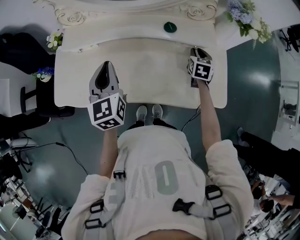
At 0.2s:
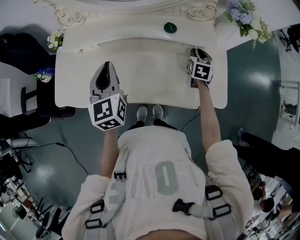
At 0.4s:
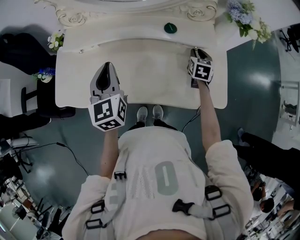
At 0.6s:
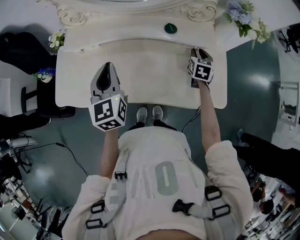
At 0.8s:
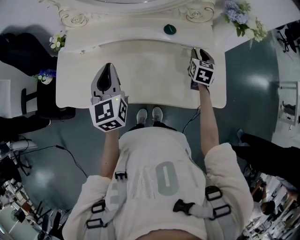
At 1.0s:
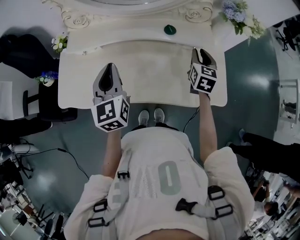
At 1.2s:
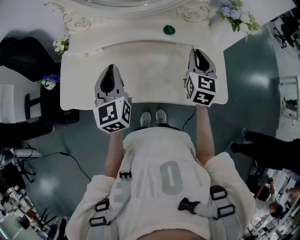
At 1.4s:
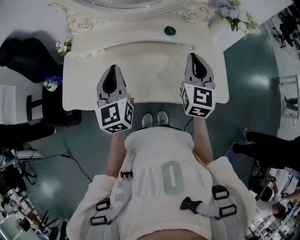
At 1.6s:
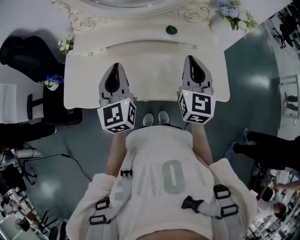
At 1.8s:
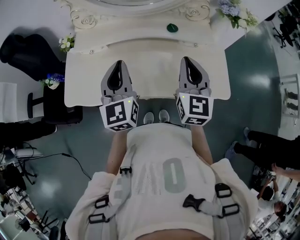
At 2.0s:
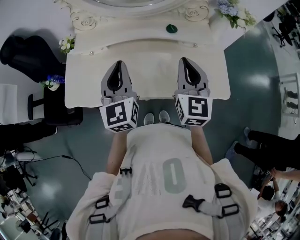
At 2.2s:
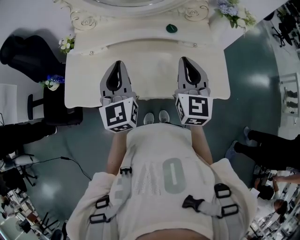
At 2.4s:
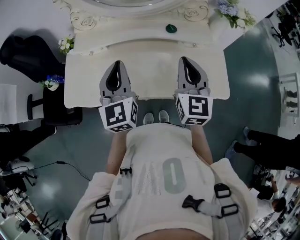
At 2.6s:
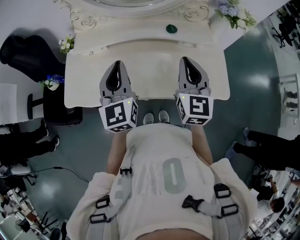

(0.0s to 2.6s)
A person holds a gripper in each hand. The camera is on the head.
0.0s - 1.2s: The right gripper goes approximately 20 cm upward and backward, and swivels roughly 20 degrees.
1.2s - 2.6s: The right gripper is displaced backward, to the left and upward by about 15 cm.

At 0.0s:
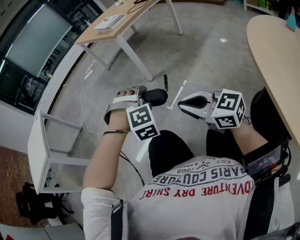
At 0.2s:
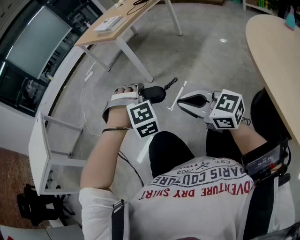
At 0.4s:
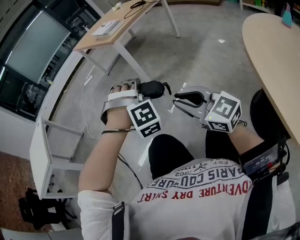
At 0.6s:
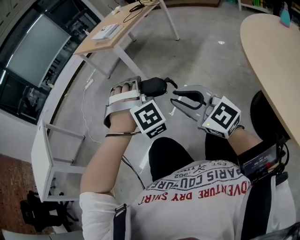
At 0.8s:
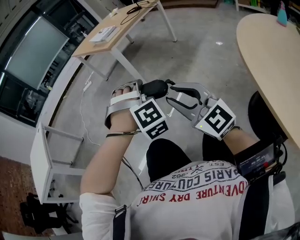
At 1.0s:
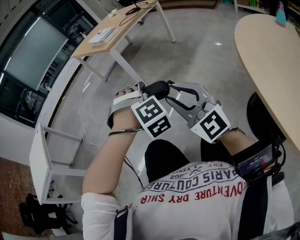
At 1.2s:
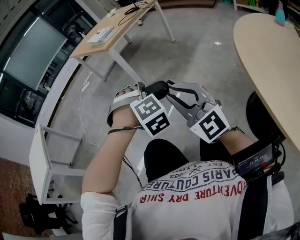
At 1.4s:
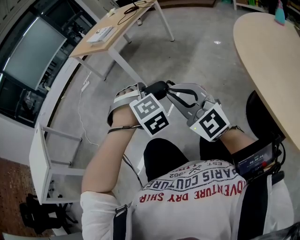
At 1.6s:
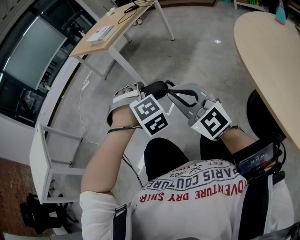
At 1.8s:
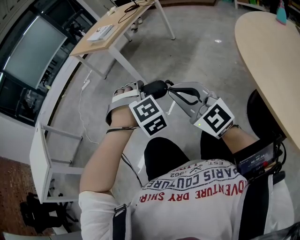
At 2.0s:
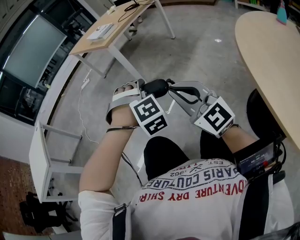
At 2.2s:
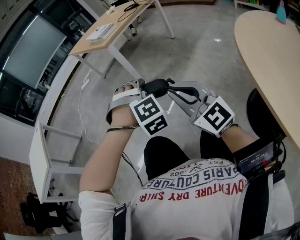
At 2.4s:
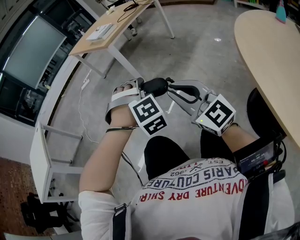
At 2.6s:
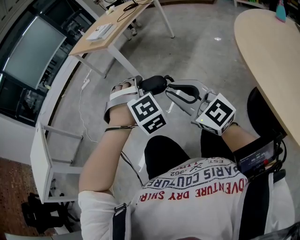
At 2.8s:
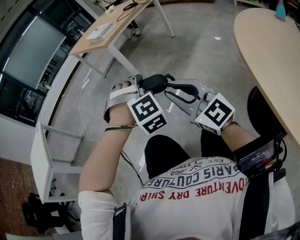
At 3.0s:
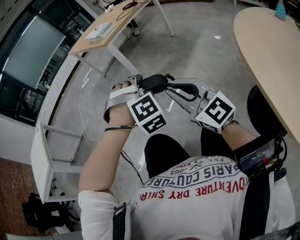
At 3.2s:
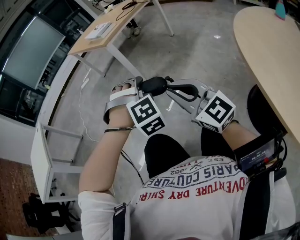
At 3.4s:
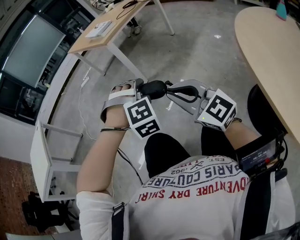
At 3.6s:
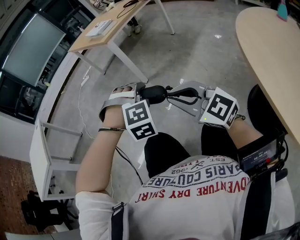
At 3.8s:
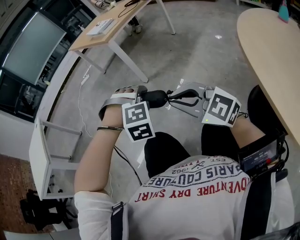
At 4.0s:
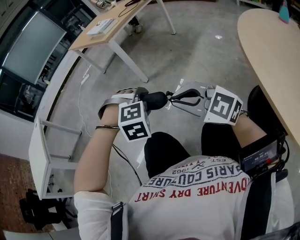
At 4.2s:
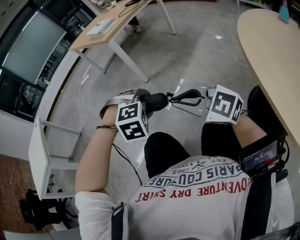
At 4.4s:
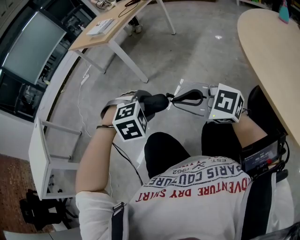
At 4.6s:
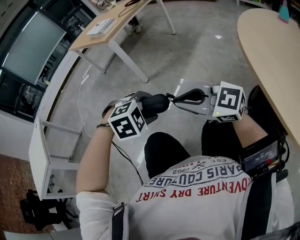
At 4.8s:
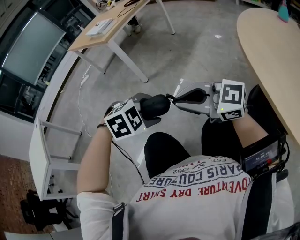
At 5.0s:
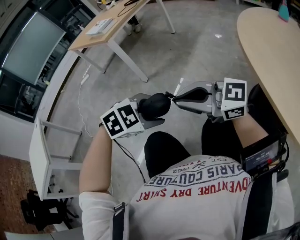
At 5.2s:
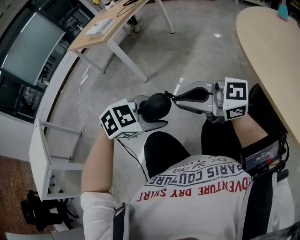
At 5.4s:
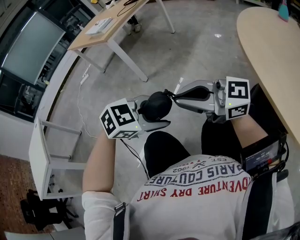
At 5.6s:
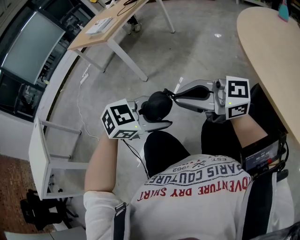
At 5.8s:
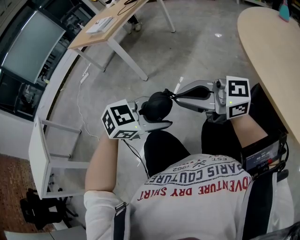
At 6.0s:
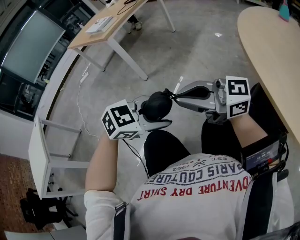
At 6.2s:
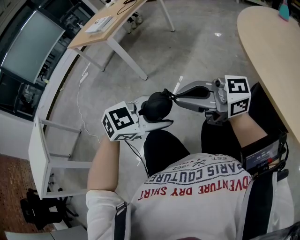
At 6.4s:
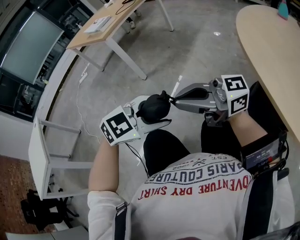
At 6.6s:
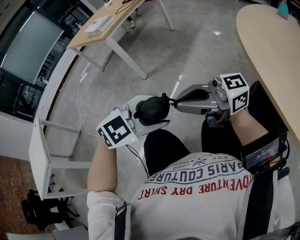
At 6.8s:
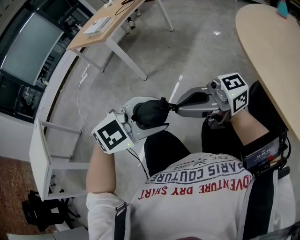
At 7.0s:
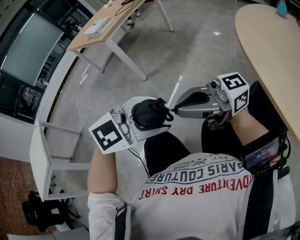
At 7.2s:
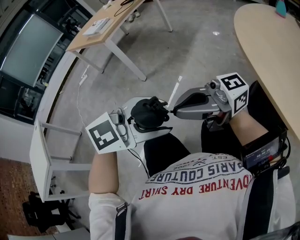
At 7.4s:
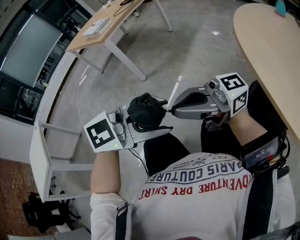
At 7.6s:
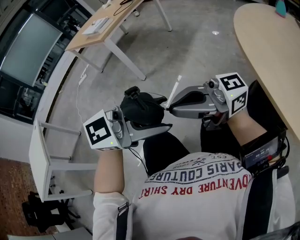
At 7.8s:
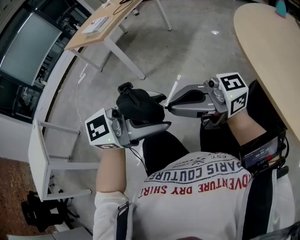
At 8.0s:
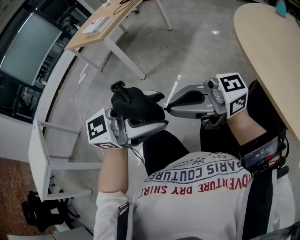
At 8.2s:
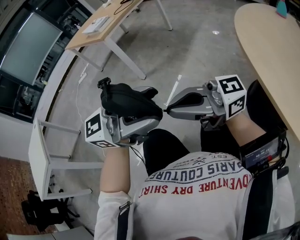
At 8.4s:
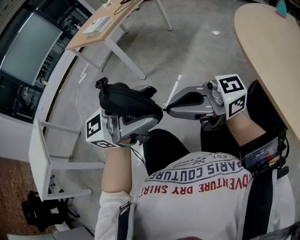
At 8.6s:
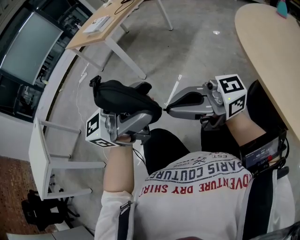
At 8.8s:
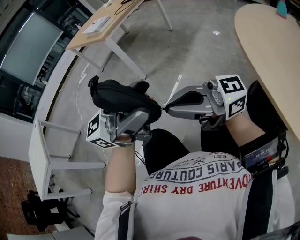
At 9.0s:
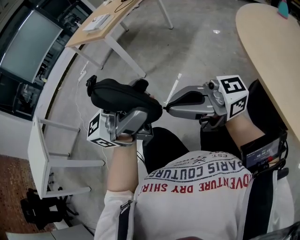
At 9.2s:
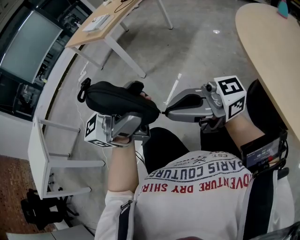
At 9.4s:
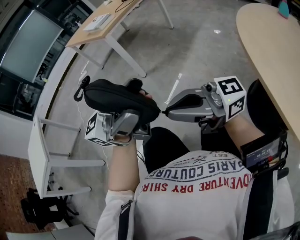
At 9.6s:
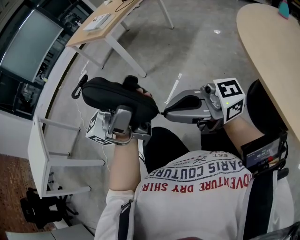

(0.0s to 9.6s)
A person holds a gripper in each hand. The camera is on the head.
0.0s - 1.6s: The right gripper goes about 5 cm upward, turns by some 40 degrees, and opens, then closes once more. Meanwhile the left gripper is displaced to the right by roughly 5 cm.
1.6s - 3.2s: There are only small adjustments of the grippers.
3.2s - 4.8s: The left gripper moves backward and downward, some 10 cm, and swivels some 50 degrees; the right gripper swivels roughly 30 degrees.
4.8s - 6.4s: The right gripper swivels some 30 degrees. The left gripper changes place by about 5 cm, and turns by some 30 degrees.
6.4s - 8.0s: The left gripper shifts roughly 15 cm upward, and angles its fingers upward, by about 40 degrees.
8.0s - 9.6s: The left gripper shifts roughly 10 cm upward, and tilts its fingers approximately 30 degrees upward.

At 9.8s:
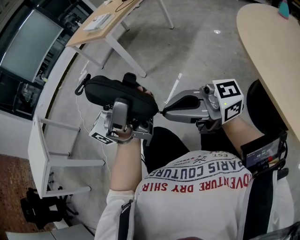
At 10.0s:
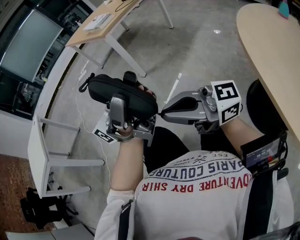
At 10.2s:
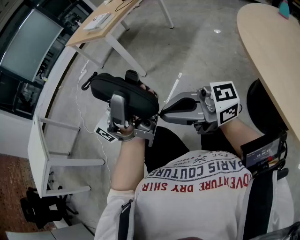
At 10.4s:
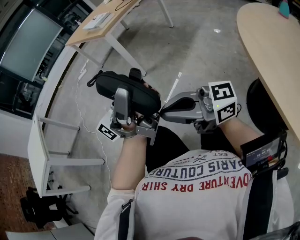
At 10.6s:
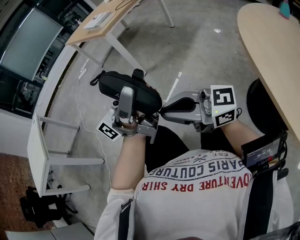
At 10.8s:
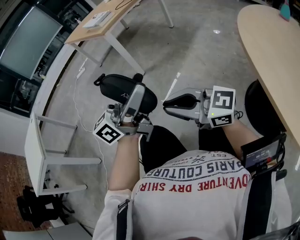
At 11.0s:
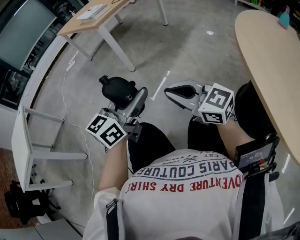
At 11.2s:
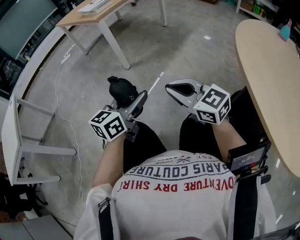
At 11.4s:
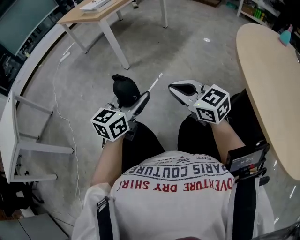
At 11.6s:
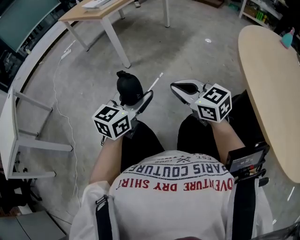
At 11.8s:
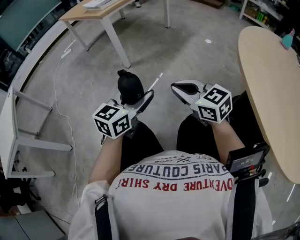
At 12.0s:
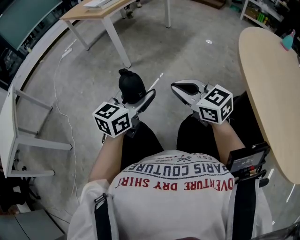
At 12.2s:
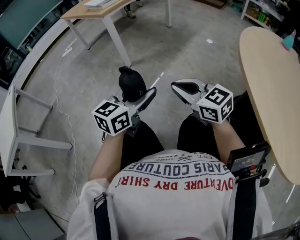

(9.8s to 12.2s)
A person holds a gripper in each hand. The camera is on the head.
9.8s - 11.0s: The right gripper moves downward, about 10 cm, and changes its angle by some 40 degrees, while the left gripper goes about 15 cm downward, and angles its fingers downward, by about 40 degrees.
11.0s - 12.2s: The left gripper ends up approximately 5 cm from where it was.

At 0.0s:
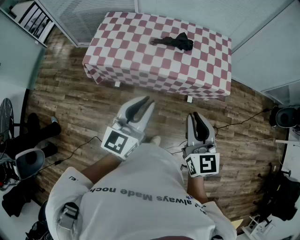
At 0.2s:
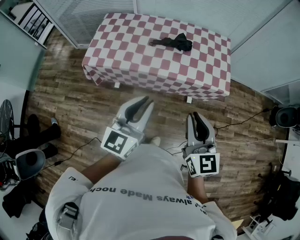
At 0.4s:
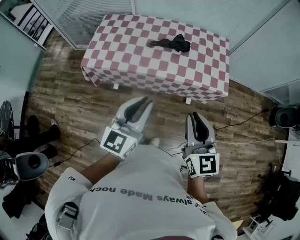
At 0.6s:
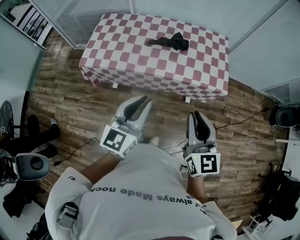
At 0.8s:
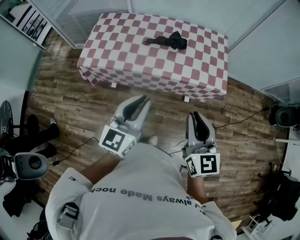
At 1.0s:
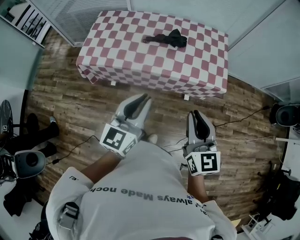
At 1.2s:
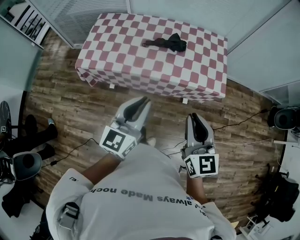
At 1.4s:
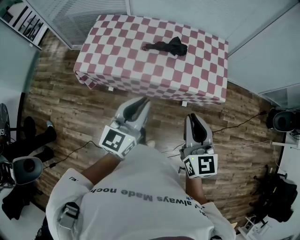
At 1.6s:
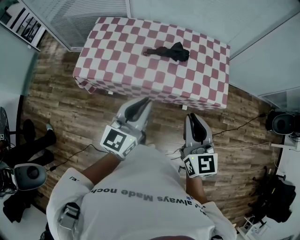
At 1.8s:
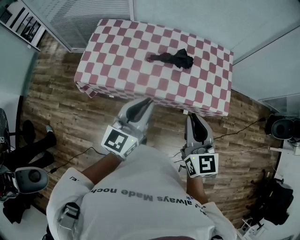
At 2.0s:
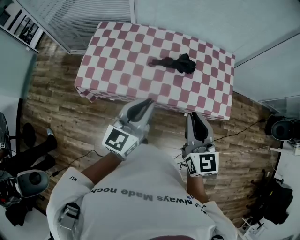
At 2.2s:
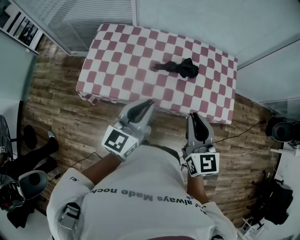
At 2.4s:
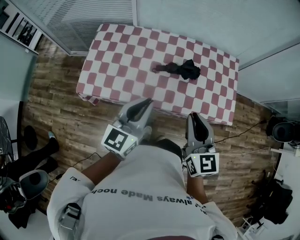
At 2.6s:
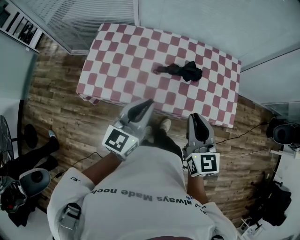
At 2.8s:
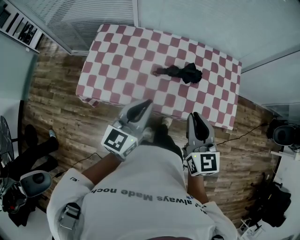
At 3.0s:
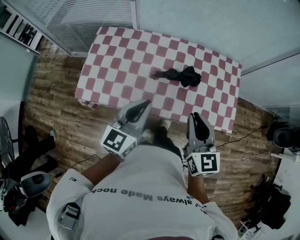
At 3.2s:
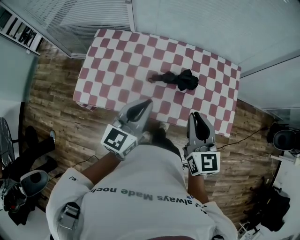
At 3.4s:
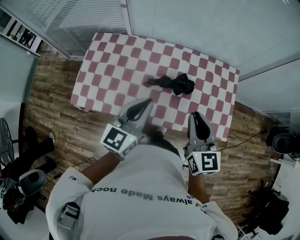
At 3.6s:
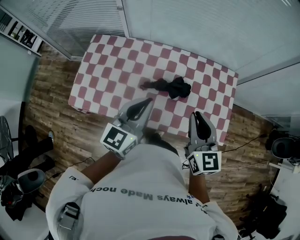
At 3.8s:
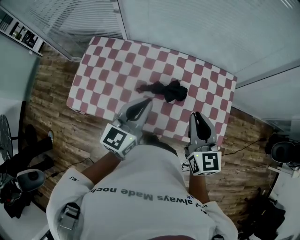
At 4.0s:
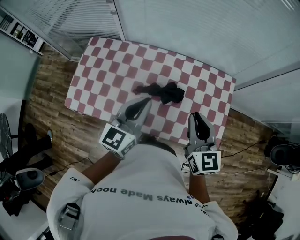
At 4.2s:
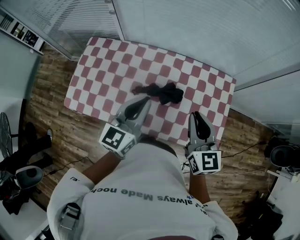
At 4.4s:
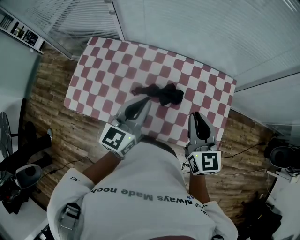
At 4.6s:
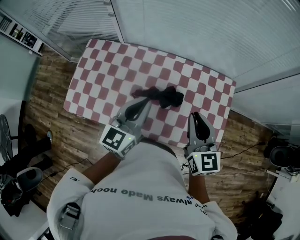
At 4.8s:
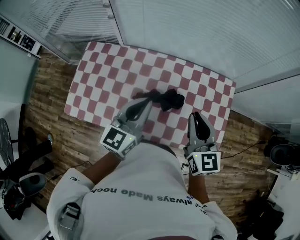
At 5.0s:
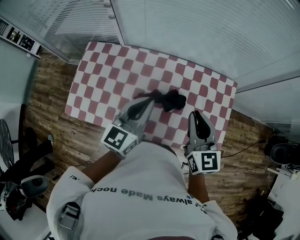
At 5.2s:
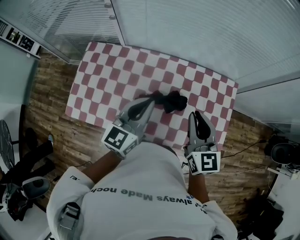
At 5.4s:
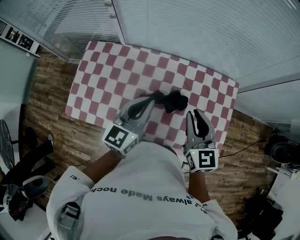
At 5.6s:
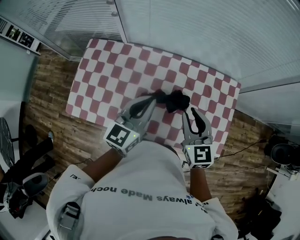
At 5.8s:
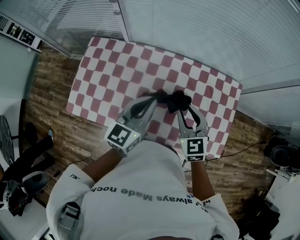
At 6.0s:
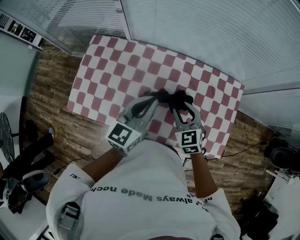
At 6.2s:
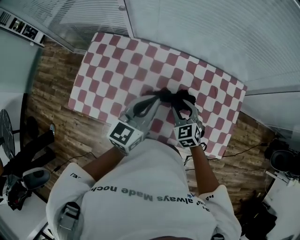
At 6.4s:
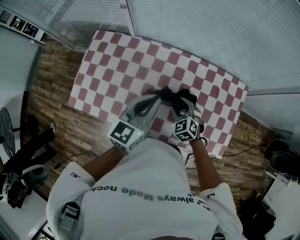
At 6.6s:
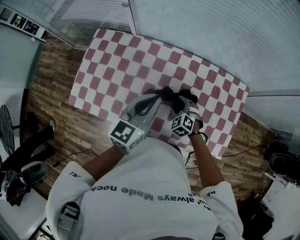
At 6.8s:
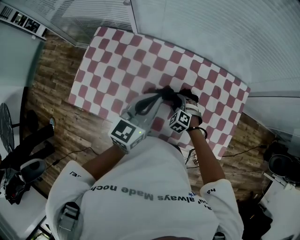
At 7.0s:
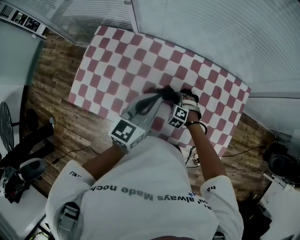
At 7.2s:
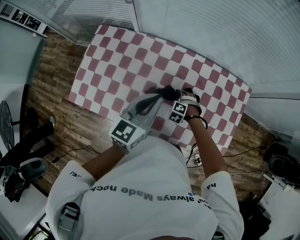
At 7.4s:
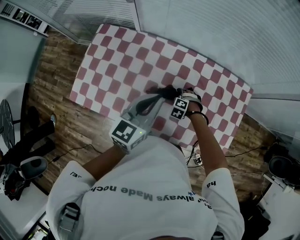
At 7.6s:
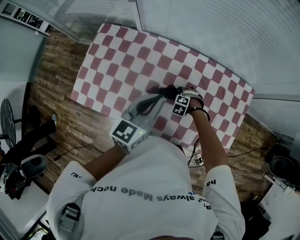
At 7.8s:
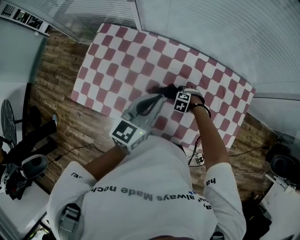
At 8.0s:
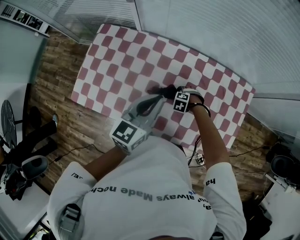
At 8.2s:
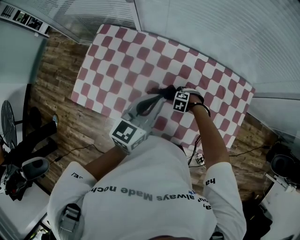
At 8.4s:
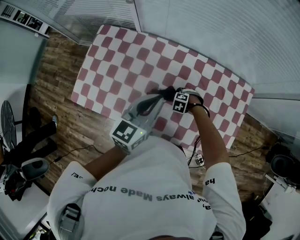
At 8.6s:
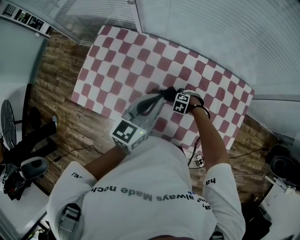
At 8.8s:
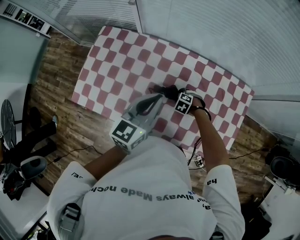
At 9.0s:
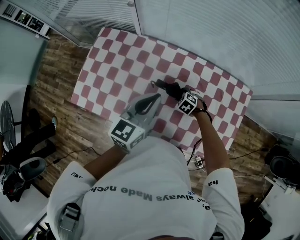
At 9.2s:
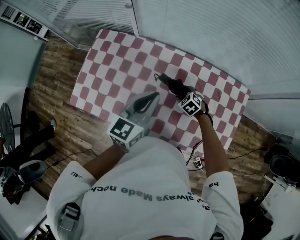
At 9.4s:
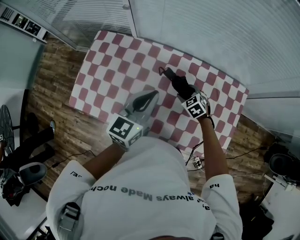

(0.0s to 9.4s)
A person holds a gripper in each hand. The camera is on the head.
0.0s - 1.6s: Both grippers travel together forward, about 15 cm.
1.6s - 3.2s: Both grippers travel together forward, about 25 cm.
3.2s - 4.8s: Both grippers move forward and to the right, some 20 cm.
4.8s - 6.2s: The right gripper shifts some 20 cm downward and to the left, turns by roughly 40 degrees, and opens up; the left gripper ends up roughly 5 cm from where it was.
6.2s - 7.8s: The right gripper goes approximately 25 cm downward, tilts its fingers roughly 40 degrees downward, and opens its fingers.
7.8s - 9.4s: The right gripper travels upward by approximately 15 cm, and swivels some 40 degrees.
